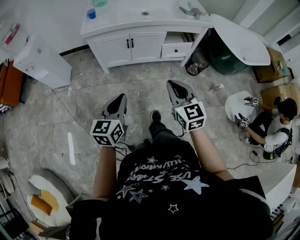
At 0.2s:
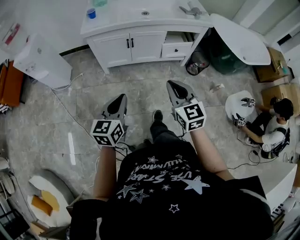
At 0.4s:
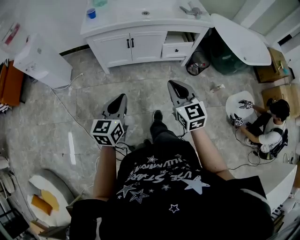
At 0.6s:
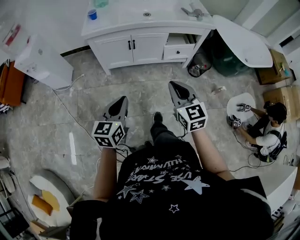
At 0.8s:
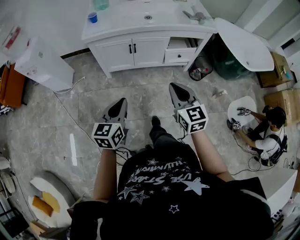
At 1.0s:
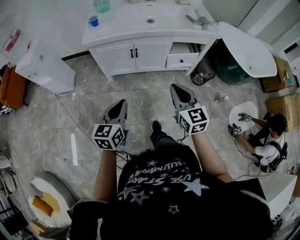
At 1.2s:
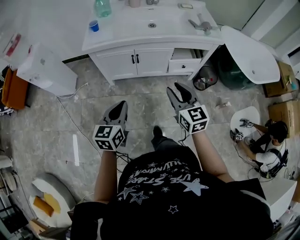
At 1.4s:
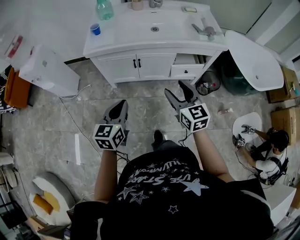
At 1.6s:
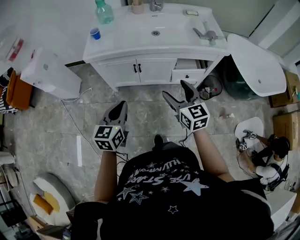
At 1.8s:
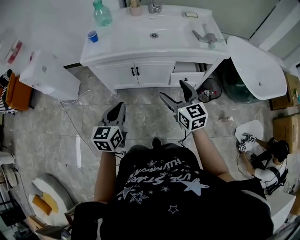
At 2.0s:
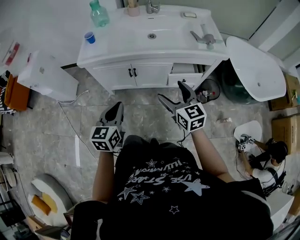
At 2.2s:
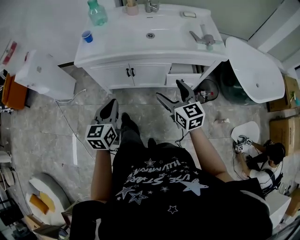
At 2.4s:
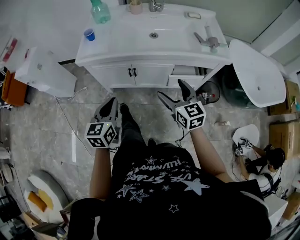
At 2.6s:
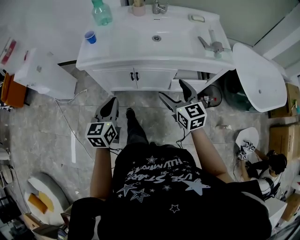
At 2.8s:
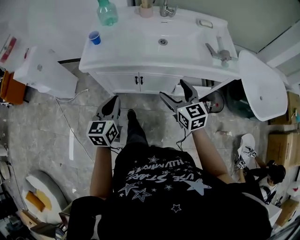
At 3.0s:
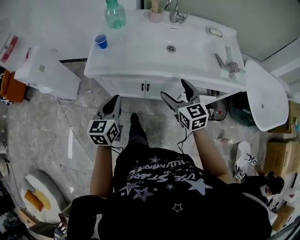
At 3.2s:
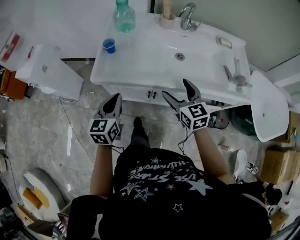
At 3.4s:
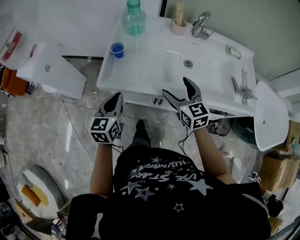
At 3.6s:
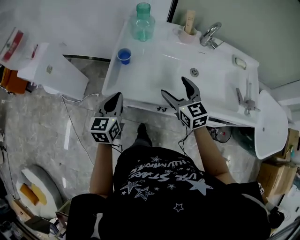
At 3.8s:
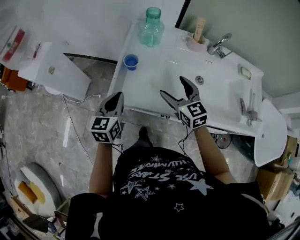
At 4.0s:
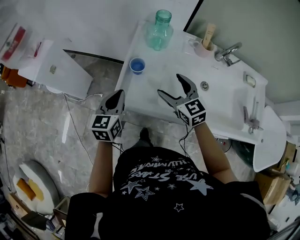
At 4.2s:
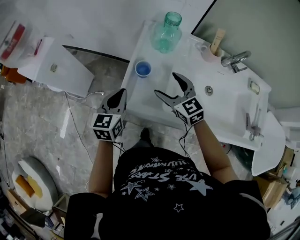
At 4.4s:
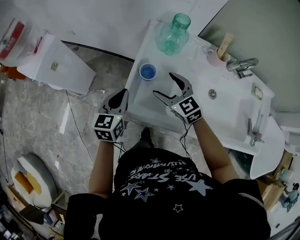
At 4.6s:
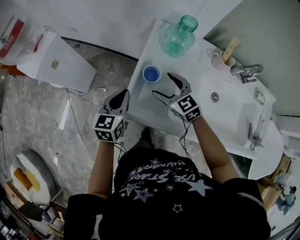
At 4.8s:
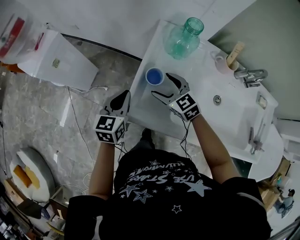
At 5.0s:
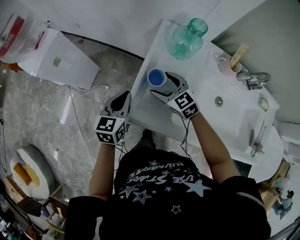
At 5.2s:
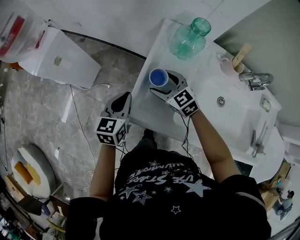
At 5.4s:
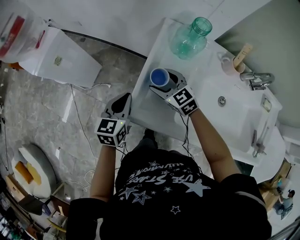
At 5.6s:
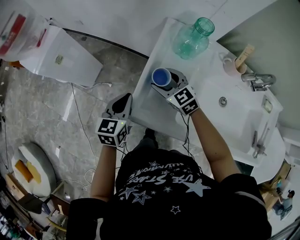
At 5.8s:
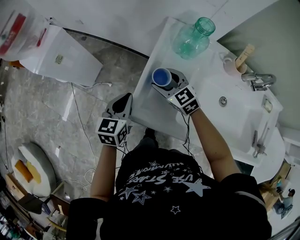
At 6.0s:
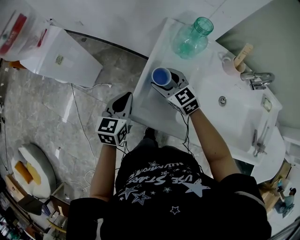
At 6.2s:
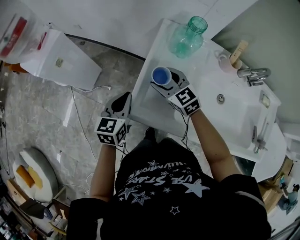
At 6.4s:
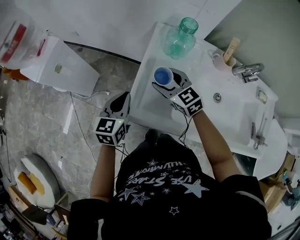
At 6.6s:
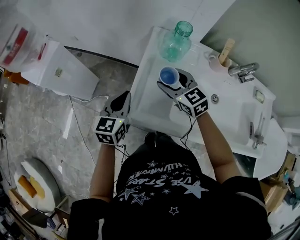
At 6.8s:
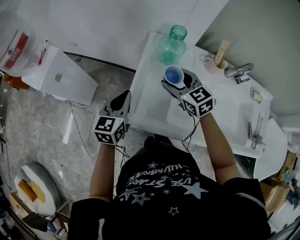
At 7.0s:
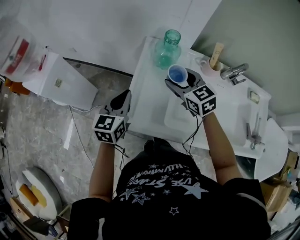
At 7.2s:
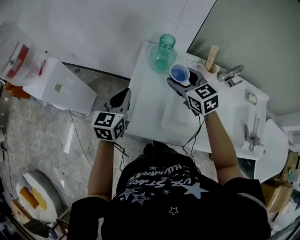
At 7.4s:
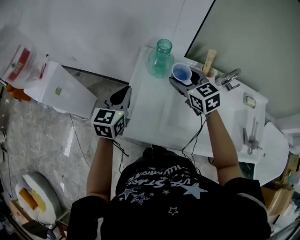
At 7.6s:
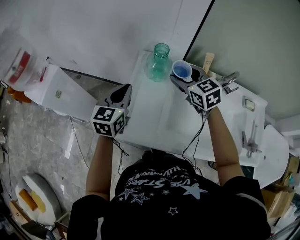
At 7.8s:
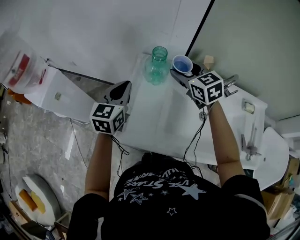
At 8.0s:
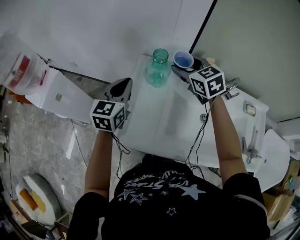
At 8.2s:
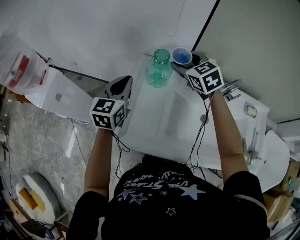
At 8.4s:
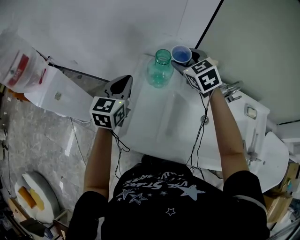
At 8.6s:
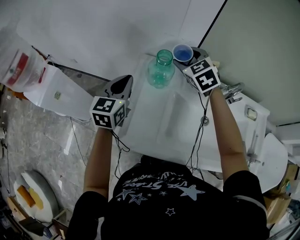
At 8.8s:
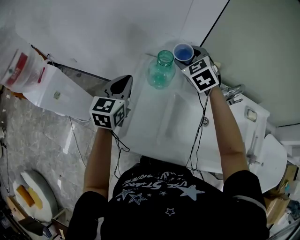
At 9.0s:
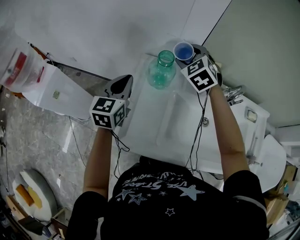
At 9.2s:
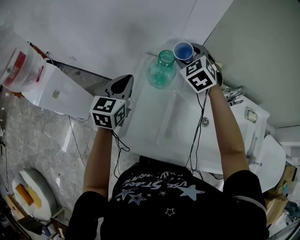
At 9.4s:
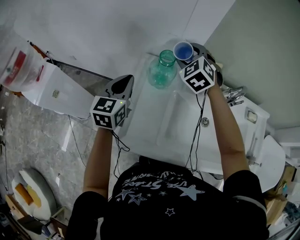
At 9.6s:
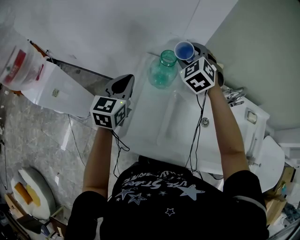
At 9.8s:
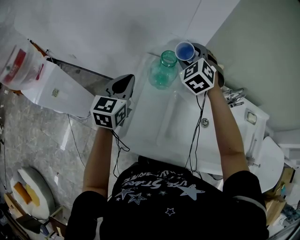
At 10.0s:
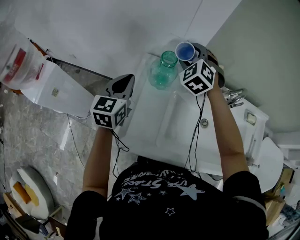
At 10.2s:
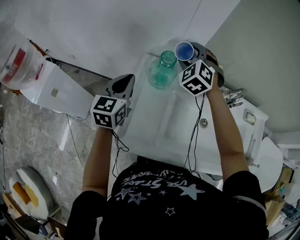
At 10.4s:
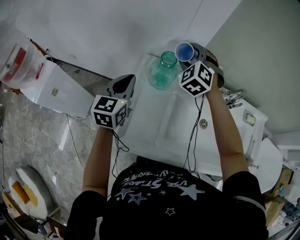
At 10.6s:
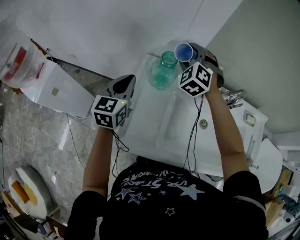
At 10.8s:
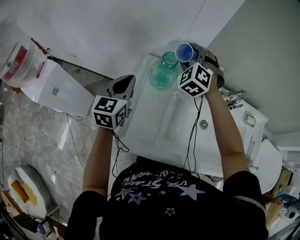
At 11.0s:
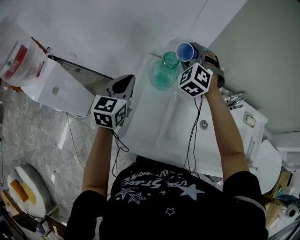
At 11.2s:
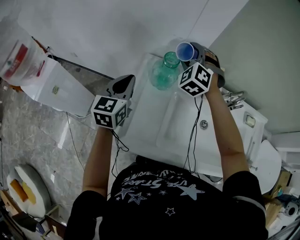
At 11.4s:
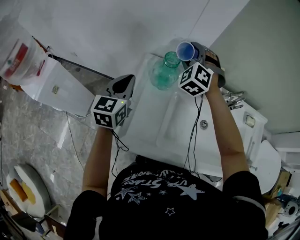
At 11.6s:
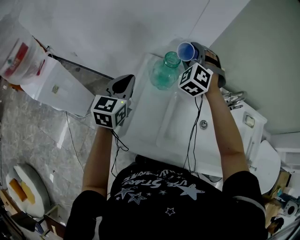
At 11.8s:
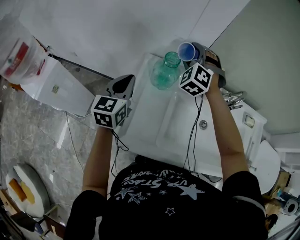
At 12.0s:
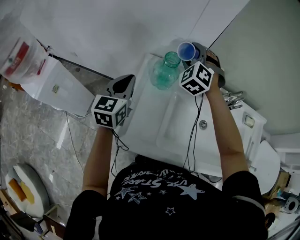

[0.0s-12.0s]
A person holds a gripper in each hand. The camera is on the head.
0.0s to 1.6s: Both grippers travel together forward, approximately 20 cm. The right gripper opens.
1.6s to 3.0s: The grippers both shift forward by about 20 cm.
3.0s to 4.4s: Both grippers travel together forward and to the left, roughly 40 cm. The right gripper changes its angle by approximately 30 degrees.
4.4s to 6.0s: The right gripper shifts approximately 10 cm forward and to the left.
6.0s to 7.6s: The right gripper shifts approximately 25 cm upward and to the right. Meanwhile the left gripper is displaced upward, to the right and forward by approximately 20 cm.
7.6s to 9.0s: The right gripper shifts some 10 cm forward, and swivels about 30 degrees. The left gripper moves forward, approximately 5 cm.
9.0s to 10.4s: The grippers make only small movements.
10.4s to 12.0s: The grippers make only small movements.

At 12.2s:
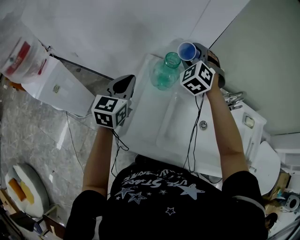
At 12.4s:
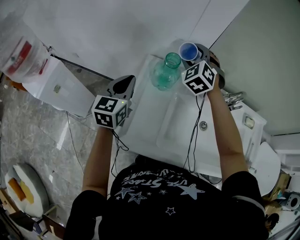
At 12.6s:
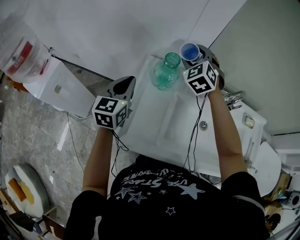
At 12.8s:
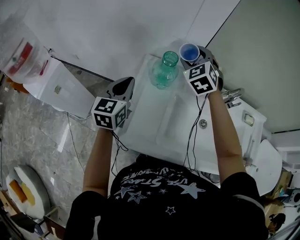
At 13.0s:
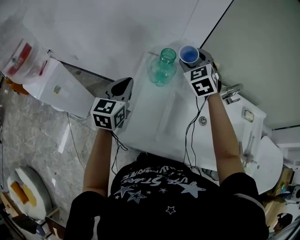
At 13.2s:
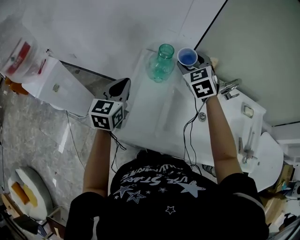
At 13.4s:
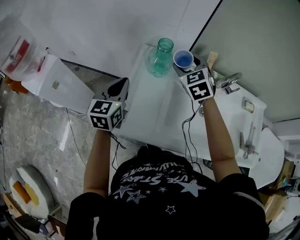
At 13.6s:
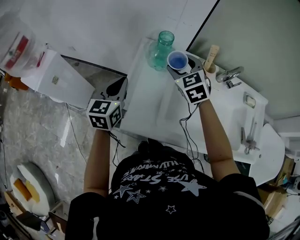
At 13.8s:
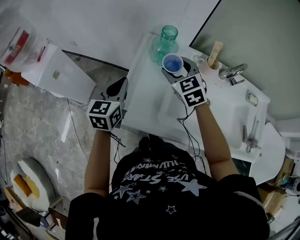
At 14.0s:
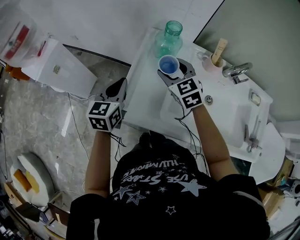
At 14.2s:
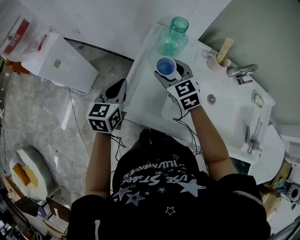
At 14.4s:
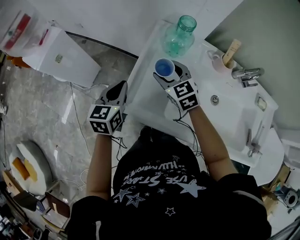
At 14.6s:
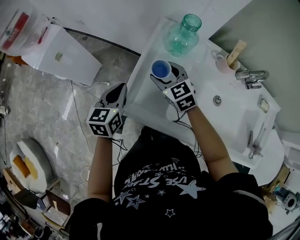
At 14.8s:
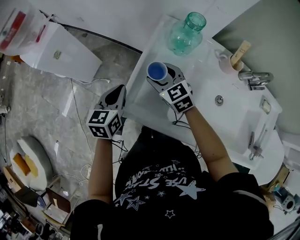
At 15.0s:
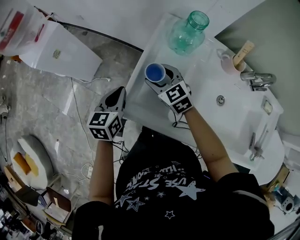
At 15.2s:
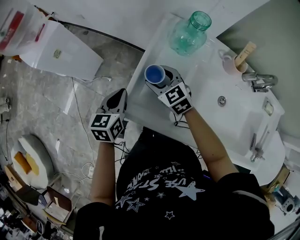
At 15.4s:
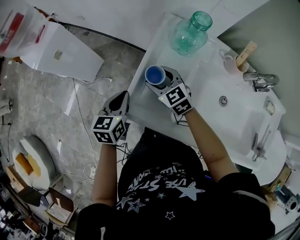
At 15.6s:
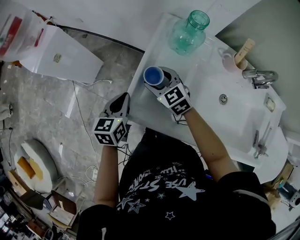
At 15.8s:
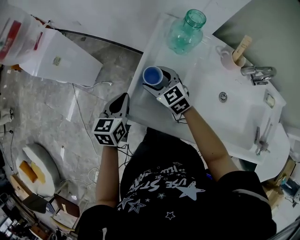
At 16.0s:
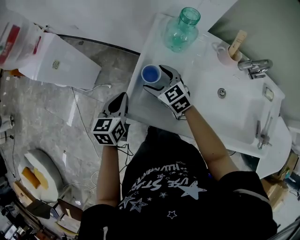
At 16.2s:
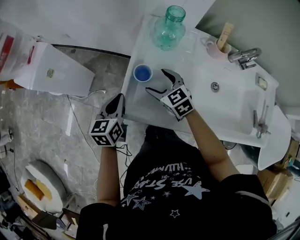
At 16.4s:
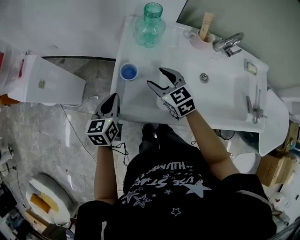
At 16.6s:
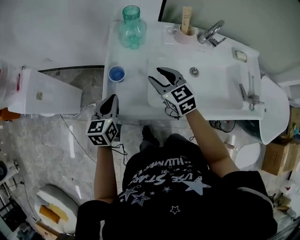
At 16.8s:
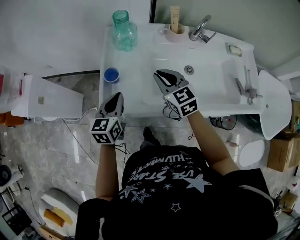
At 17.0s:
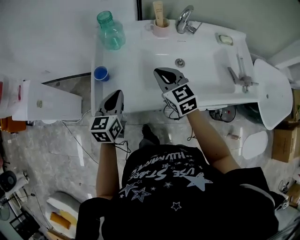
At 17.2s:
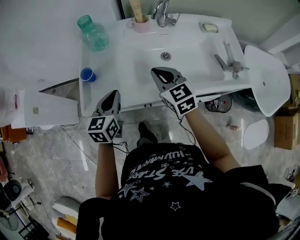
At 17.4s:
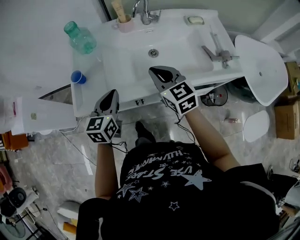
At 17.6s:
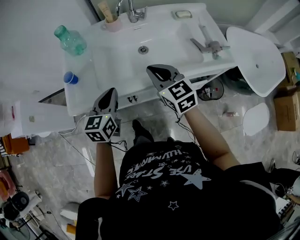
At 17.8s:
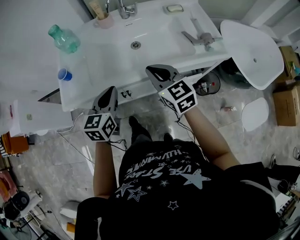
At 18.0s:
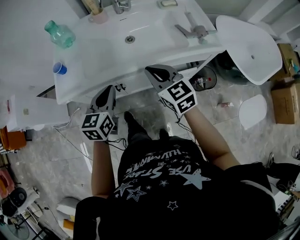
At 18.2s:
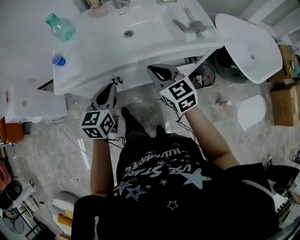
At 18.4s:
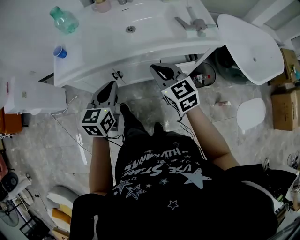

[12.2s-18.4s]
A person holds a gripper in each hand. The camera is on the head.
12.2s to 13.8s: The right gripper travels backward and downward by about 20 cm, and rotates some 40 degrees. Meanwhile the left gripper moves backward, approximately 10 cm.
13.8s to 15.4s: The grippers both shift downward and to the left by some 15 cm. The right gripper changes its angle by some 20 degrees.
15.4s to 16.8s: The left gripper changes place by approximately 15 cm, and turns by approximately 20 degrees. Meanwhile the right gripper changes place by approximately 25 cm, rotates roughly 30 degrees, and closes its fingers.
16.8s to 18.4s: The left gripper heads to the right and backward, covering about 35 cm. Meanwhile the right gripper travels backward and to the right by approximately 40 cm.

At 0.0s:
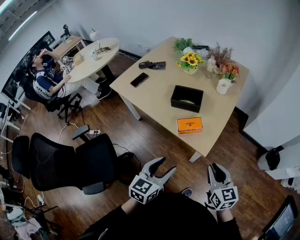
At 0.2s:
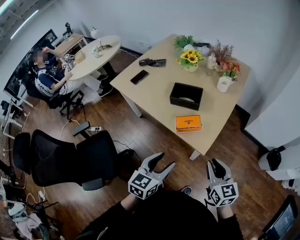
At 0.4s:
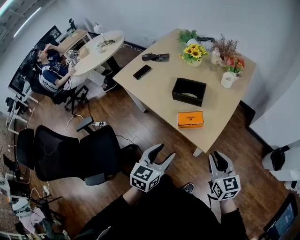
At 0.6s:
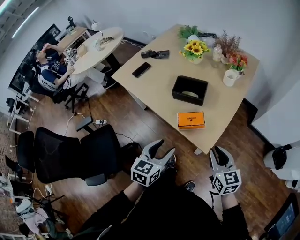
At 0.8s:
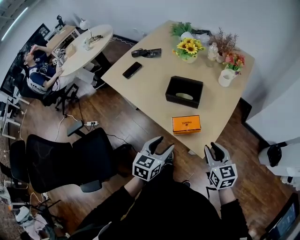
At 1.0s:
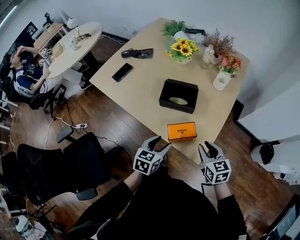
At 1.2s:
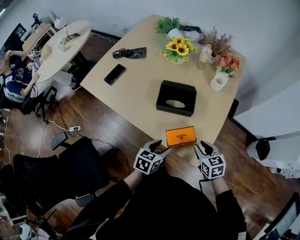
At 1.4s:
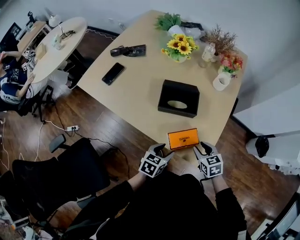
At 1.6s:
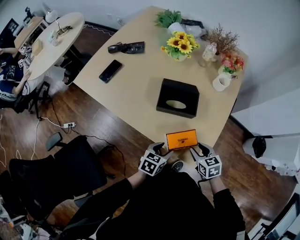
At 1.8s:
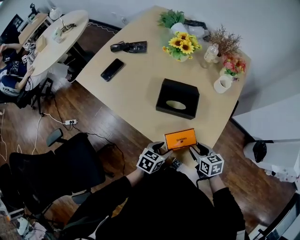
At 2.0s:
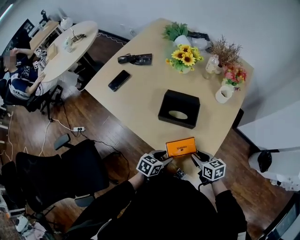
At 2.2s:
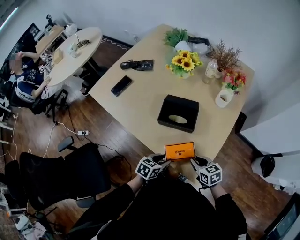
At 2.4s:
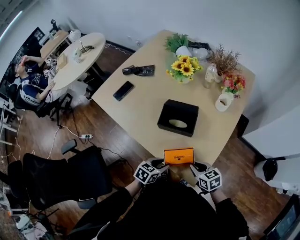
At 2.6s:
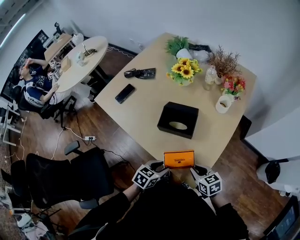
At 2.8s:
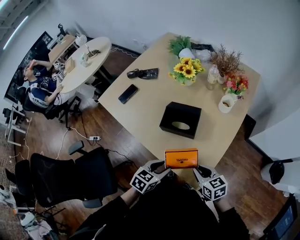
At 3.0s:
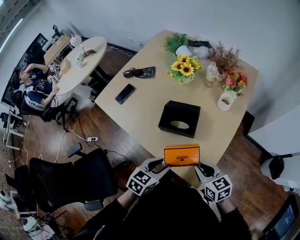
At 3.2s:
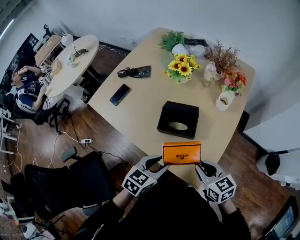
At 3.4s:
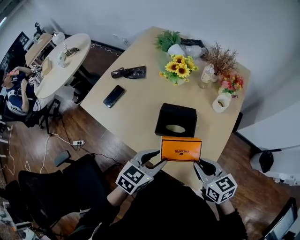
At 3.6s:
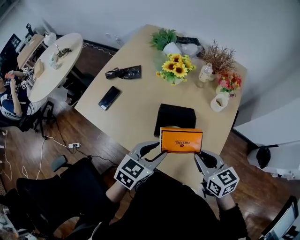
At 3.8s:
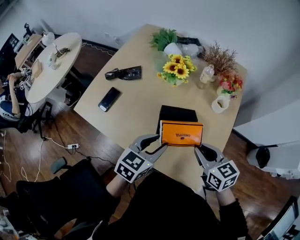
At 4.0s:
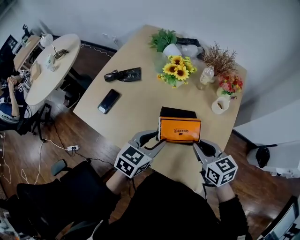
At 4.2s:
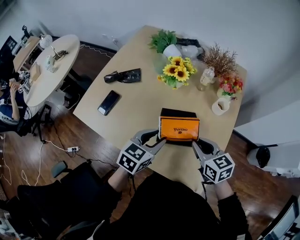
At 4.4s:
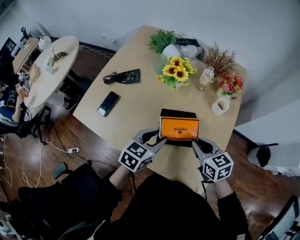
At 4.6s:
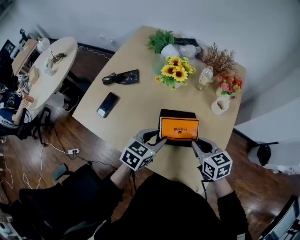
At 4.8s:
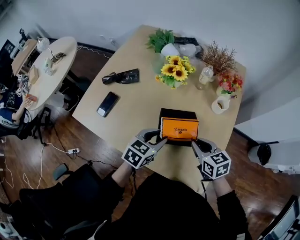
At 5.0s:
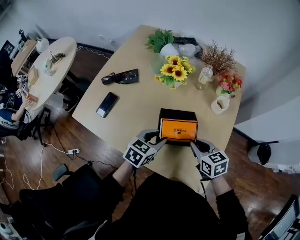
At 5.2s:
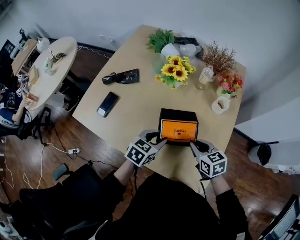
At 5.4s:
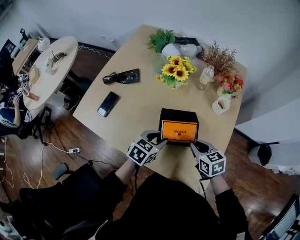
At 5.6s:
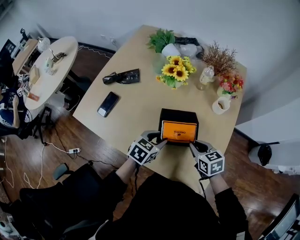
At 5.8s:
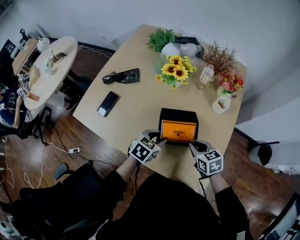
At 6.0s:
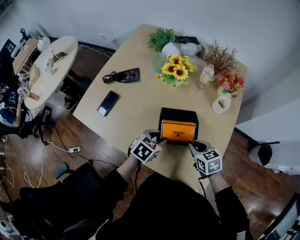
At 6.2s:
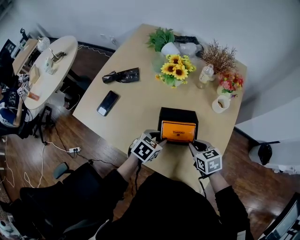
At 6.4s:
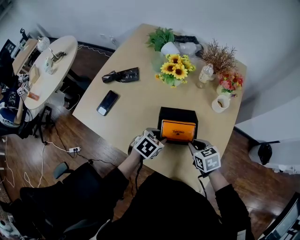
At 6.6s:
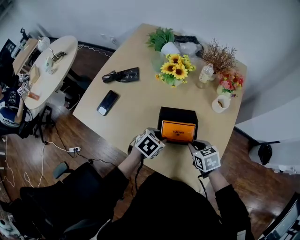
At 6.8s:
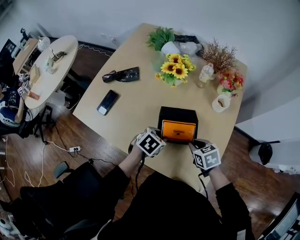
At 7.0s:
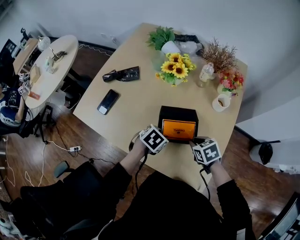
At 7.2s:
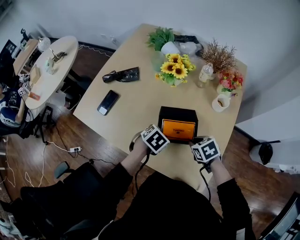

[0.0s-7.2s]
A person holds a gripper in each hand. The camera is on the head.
0.0s to 1.4s: Both grippers travel together forward and downward, some 30 cm. The left gripper swivels about 30 degrees. Meanwhile the right gripper points its fingers roughly 30 degrees further downward, and opens.
1.4s to 2.8s: Both grippers travel together upward, roughly 5 cm. The right gripper changes its angle by roughly 20 degrees, and closes its fingers.
2.8s to 4.4s: The right gripper moves forward, to the left and upward, some 20 cm. The left gripper moves forward, some 20 cm.
4.4s to 5.8s: The grippers both shift downward by approximately 10 cm.
5.8s to 7.2s: The right gripper rotates roughly 20 degrees. Meanwhile the left gripper rotates roughly 20 degrees.
